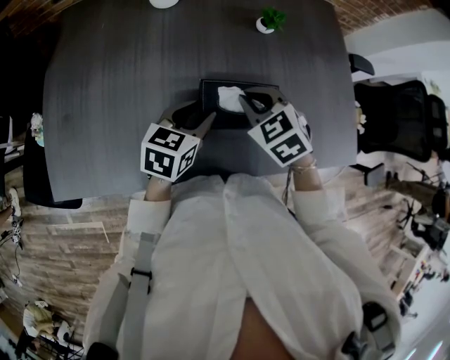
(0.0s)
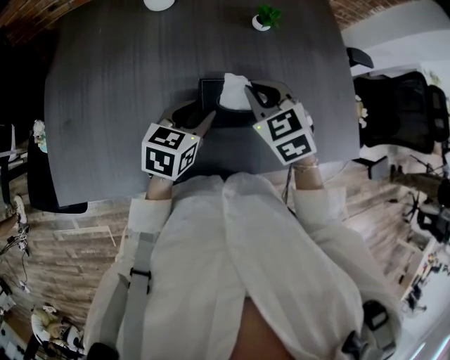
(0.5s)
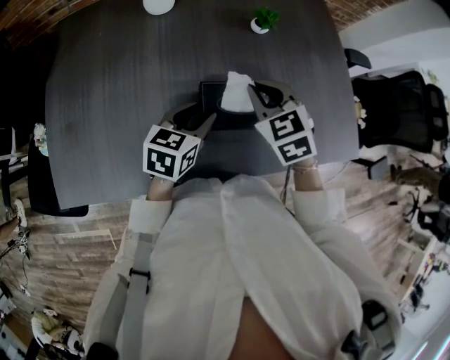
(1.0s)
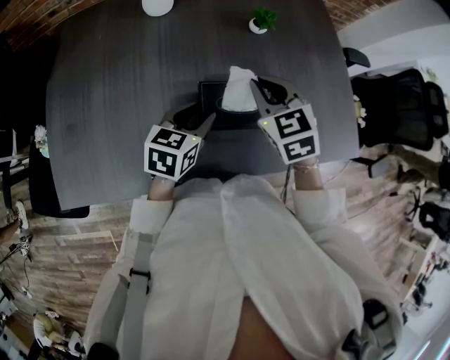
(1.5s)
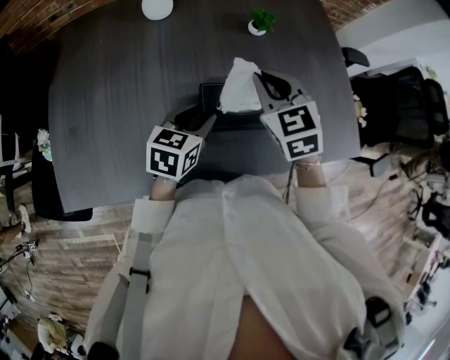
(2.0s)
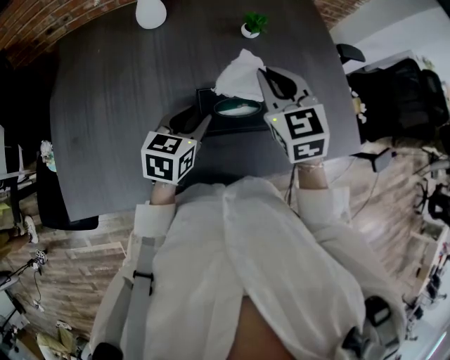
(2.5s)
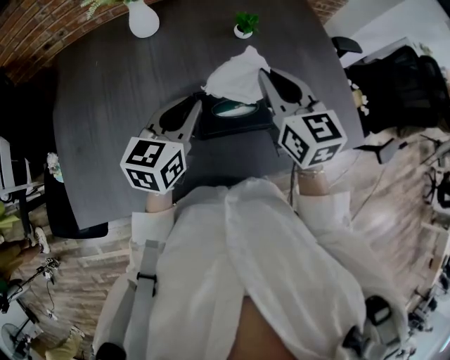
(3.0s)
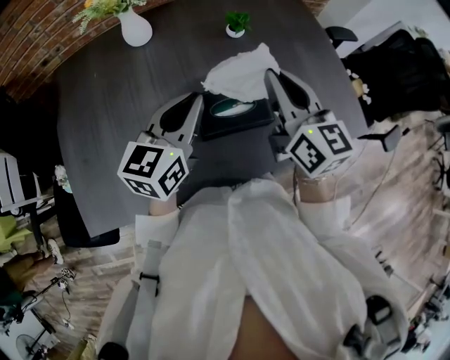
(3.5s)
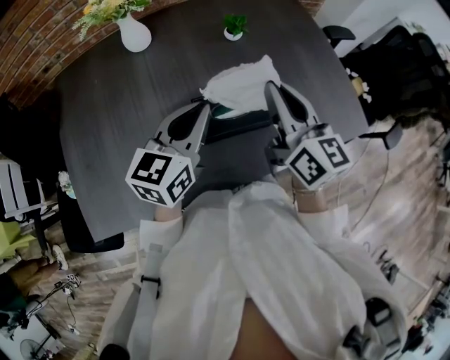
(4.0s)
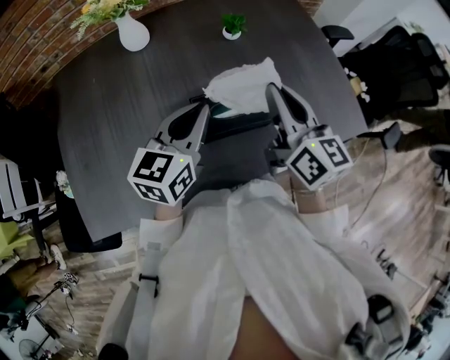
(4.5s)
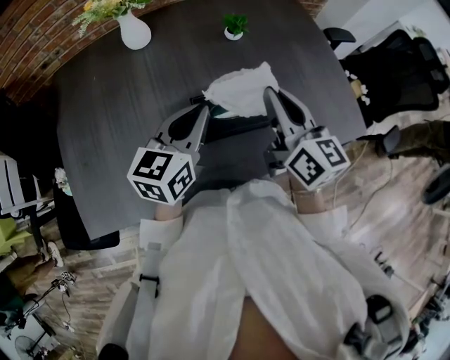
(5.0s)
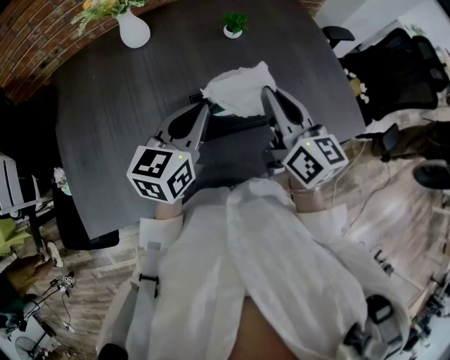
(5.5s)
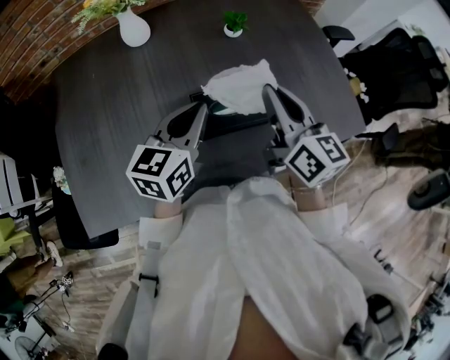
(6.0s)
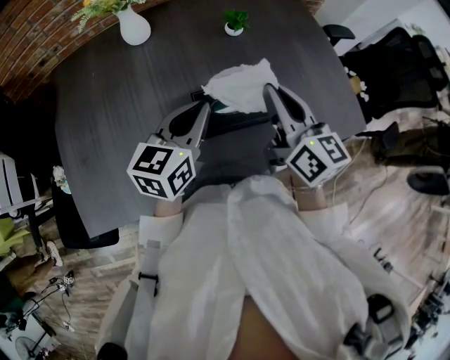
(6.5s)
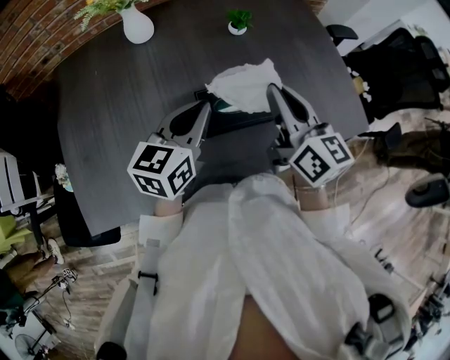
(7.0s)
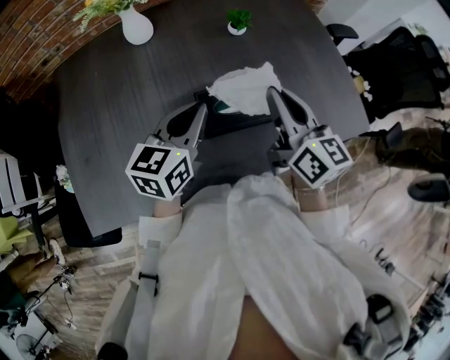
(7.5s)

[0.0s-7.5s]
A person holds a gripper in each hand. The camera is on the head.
0.0s to 2.0s: The right gripper shifts approximately 10 cm upward, and swivels some 20 degrees.
2.0s to 4.0s: The left gripper goes approximately 15 cm upward, swivels roughly 20 degrees, and closes up; the right gripper moves upward, to the right and backward, some 10 cm, and rolls clockwise, seen from behind, by approximately 40 degrees.
4.0s to 5.5s: There are only small adjustments of the grippers.
5.5s to 7.5s: Both grippers stay put.

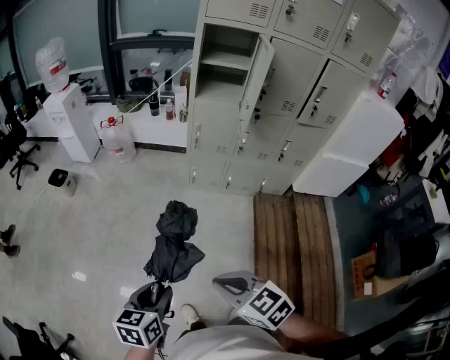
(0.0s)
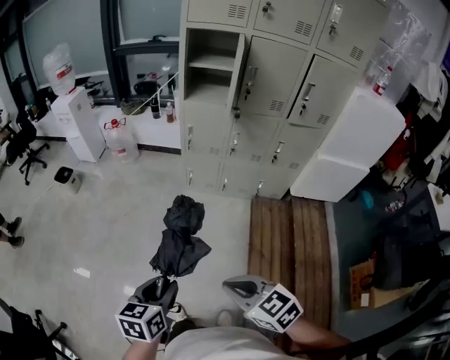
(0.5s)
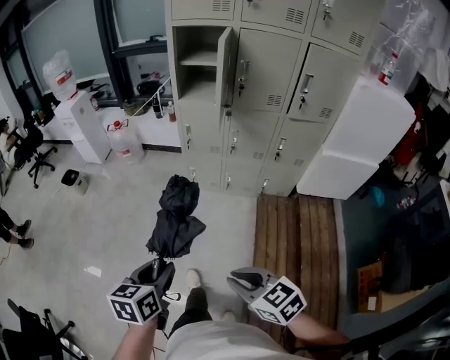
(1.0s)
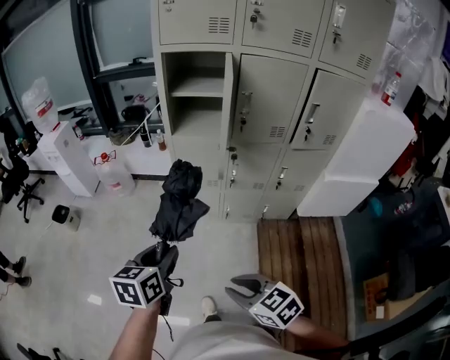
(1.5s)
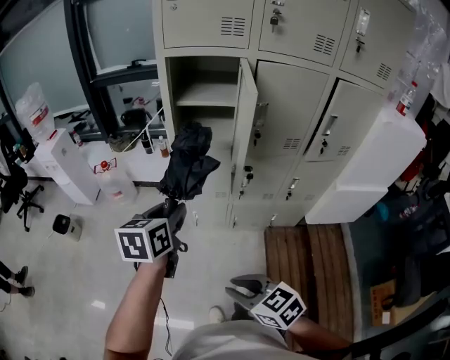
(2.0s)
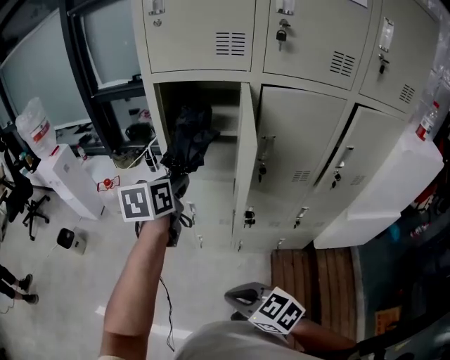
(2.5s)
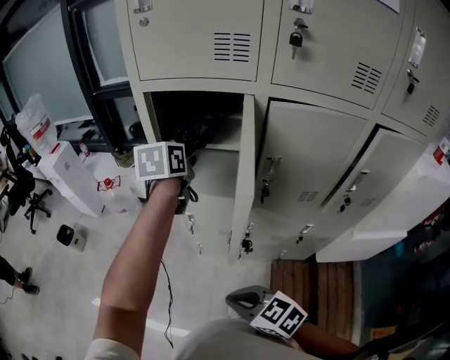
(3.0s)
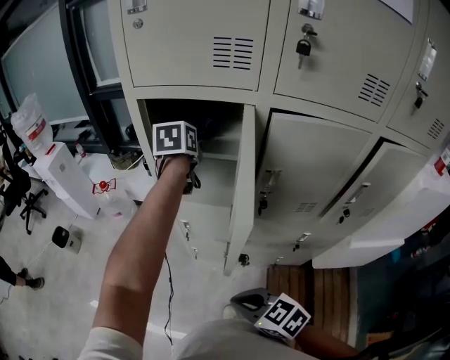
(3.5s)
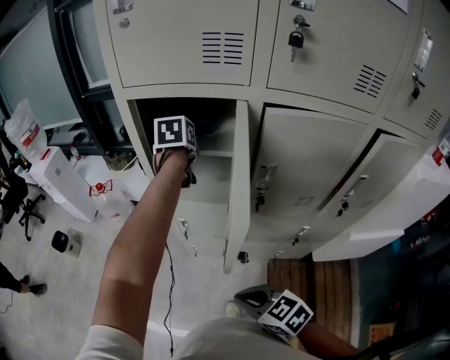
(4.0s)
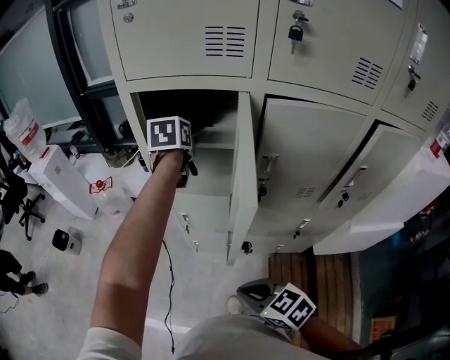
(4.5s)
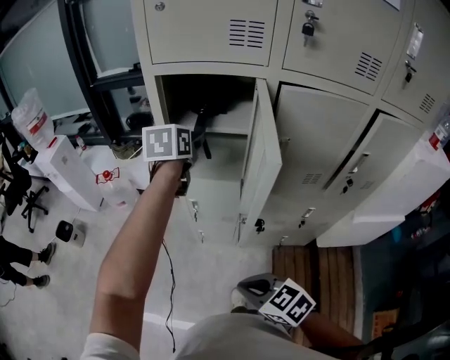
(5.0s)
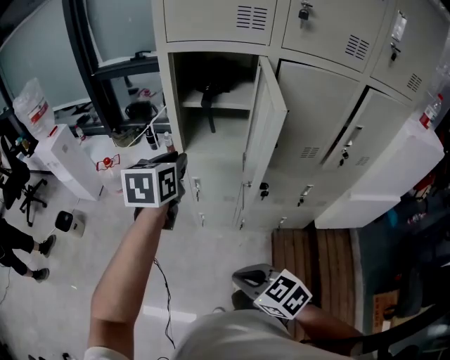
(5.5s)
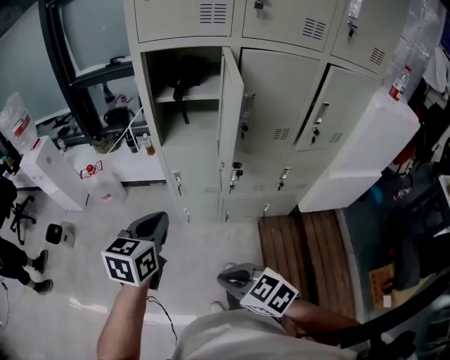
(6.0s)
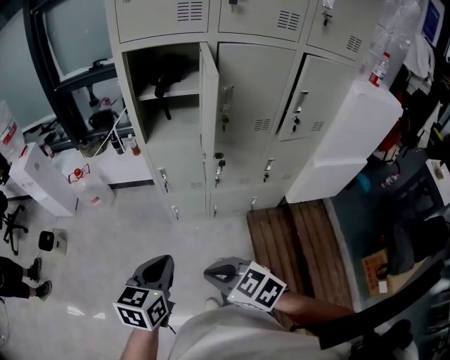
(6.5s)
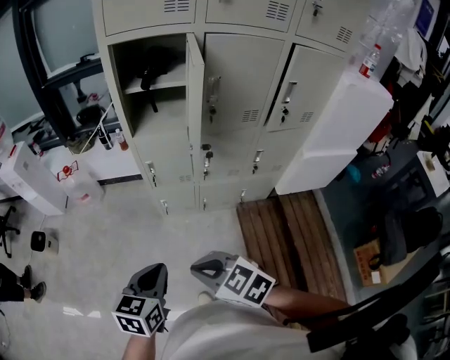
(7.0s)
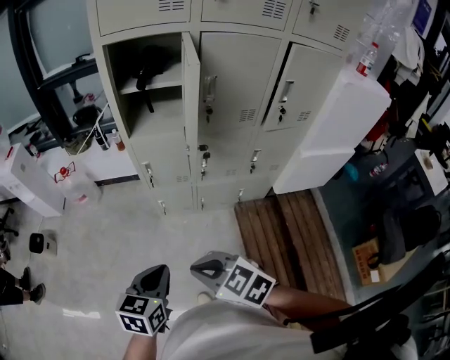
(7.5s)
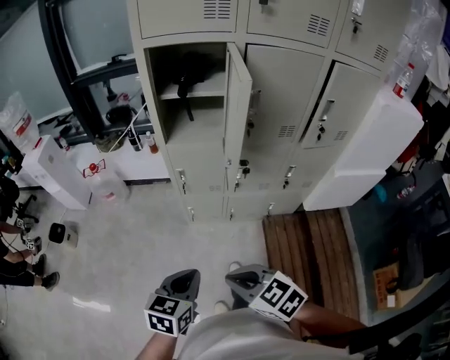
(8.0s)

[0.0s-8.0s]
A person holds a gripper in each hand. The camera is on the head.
0.0s to 2.0s: The left gripper goes about 50 cm forward and to the right; the right gripper travels forward and to the right by about 30 cm.
2.0s to 4.0s: The right gripper is displaced forward and to the right by roughly 25 cm. Meanwhile the left gripper heads forward and to the right, covering about 50 cm.
4.0s to 6.0s: The left gripper shifts about 50 cm backward and to the left, rotates approximately 20 degrees, and closes. Meanwhile the right gripper shifts about 20 cm to the left and backward.
6.0s to 8.0s: The left gripper goes roughly 20 cm backward and downward.

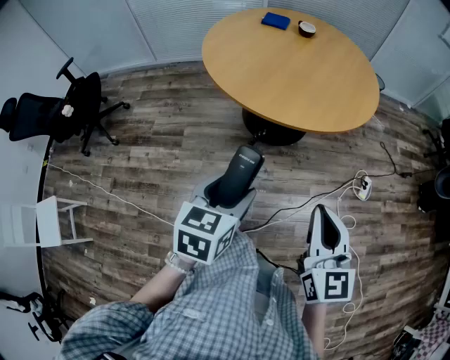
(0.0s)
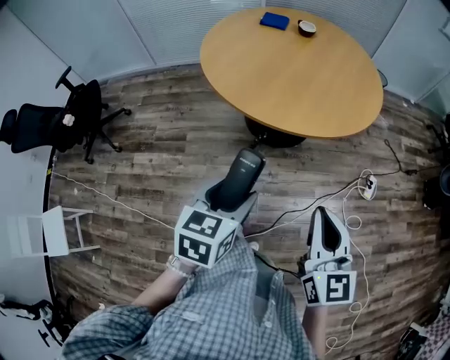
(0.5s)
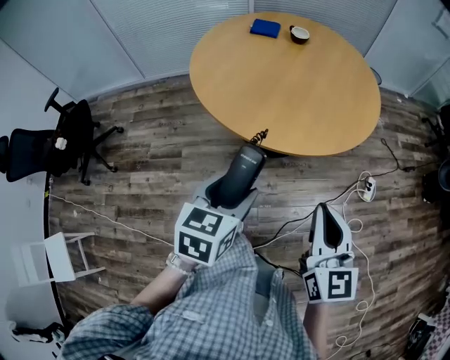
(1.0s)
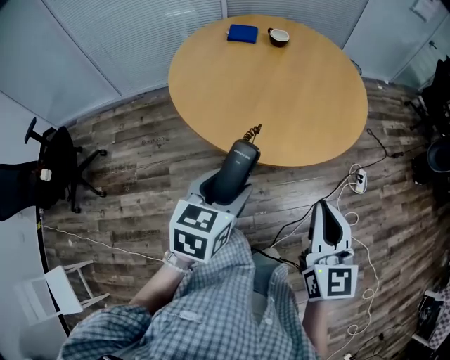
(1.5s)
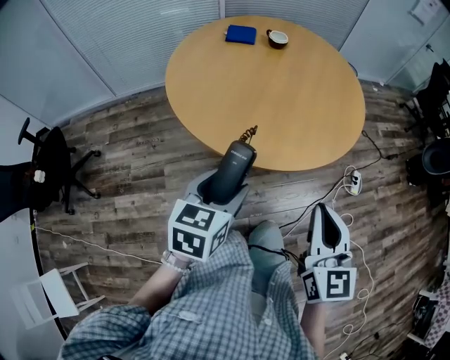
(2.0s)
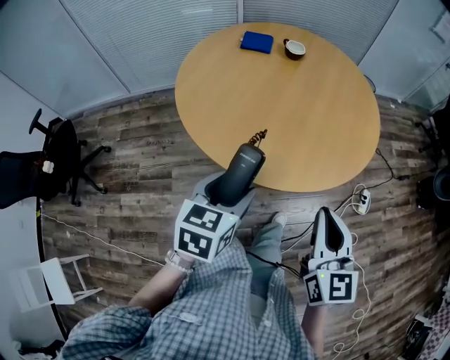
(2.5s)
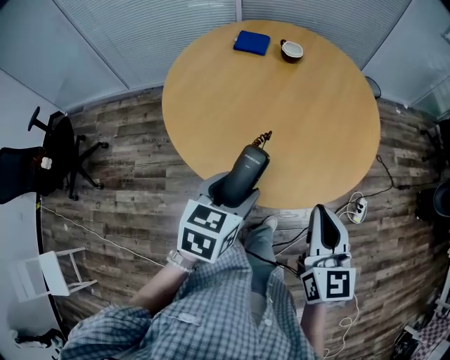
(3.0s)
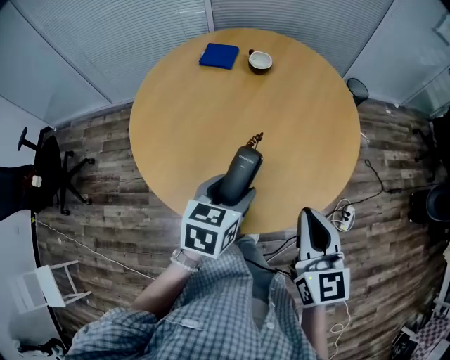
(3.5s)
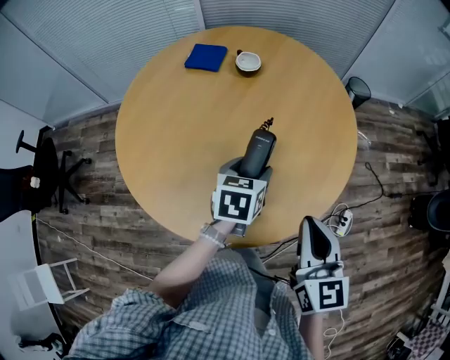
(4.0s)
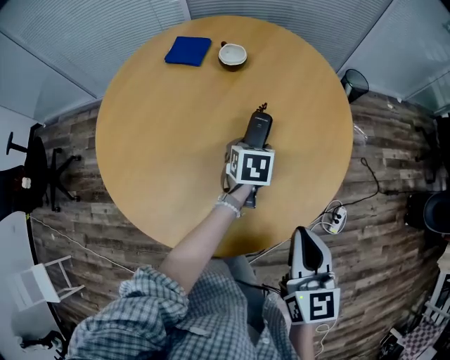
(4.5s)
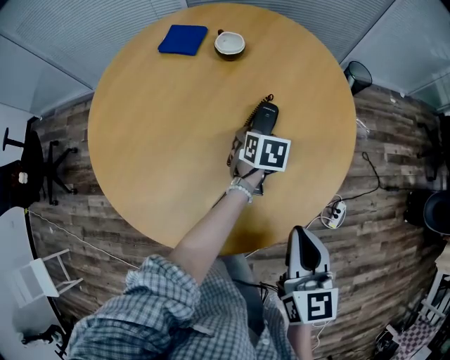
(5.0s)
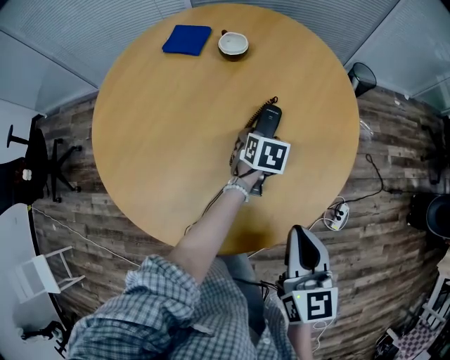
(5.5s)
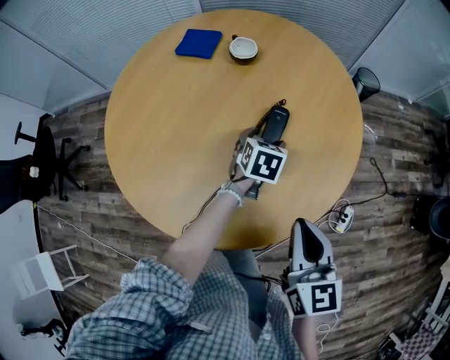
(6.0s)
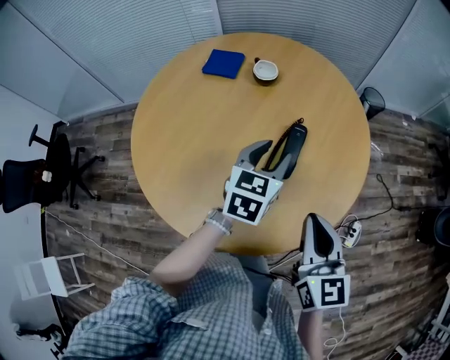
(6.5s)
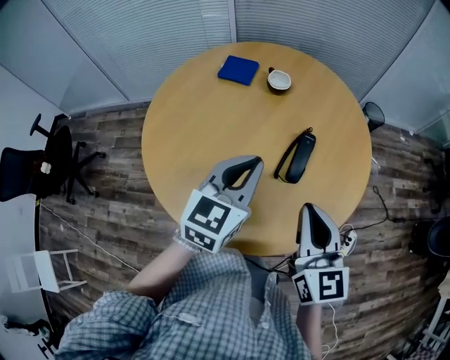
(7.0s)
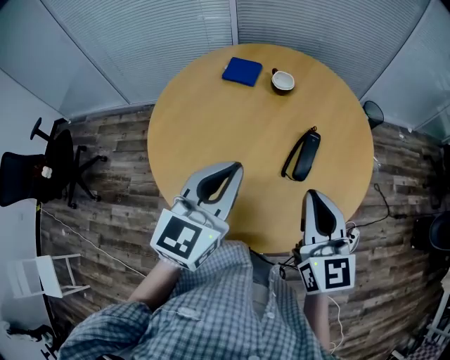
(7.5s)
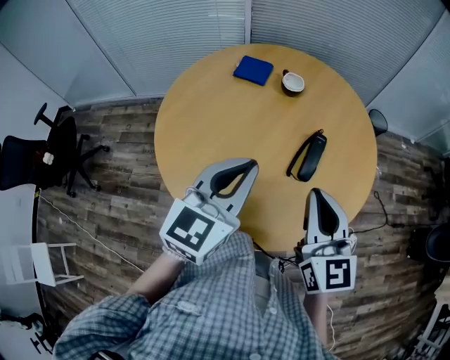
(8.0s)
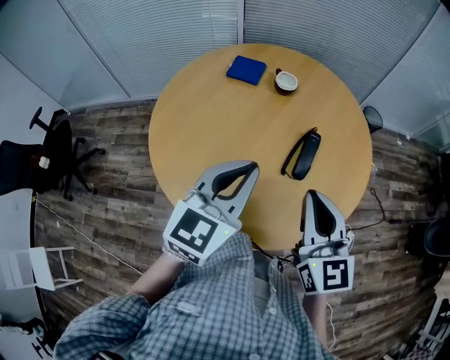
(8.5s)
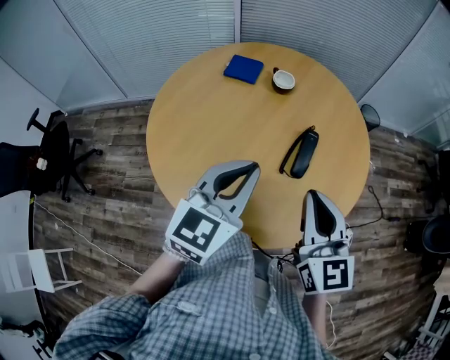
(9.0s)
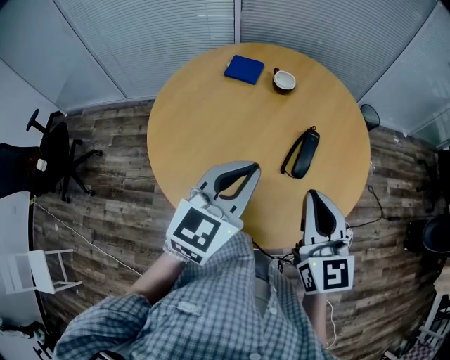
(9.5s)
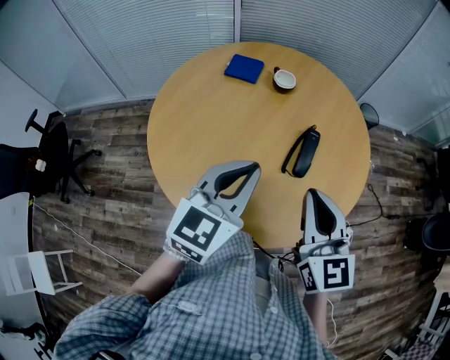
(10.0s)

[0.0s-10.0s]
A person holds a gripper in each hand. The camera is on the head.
0.0s to 2.0s: The grippers both shift forward and to the left by approximately 20 cm.
2.0s to 4.0s: The two grippers go roughly 40 cm forward and to the right.
4.0s to 6.0s: The left gripper heads forward, downward and to the right, covering about 15 cm.
6.0s to 8.0s: The left gripper heads upward, to the left and backward, covering approximately 40 cm, angles its fingers upward, by some 40 degrees, and closes its fingers. The right gripper is displaced to the left and upward by roughly 15 cm, and changes its angle by about 20 degrees.
8.0s to 10.0s: The grippers move only a little.

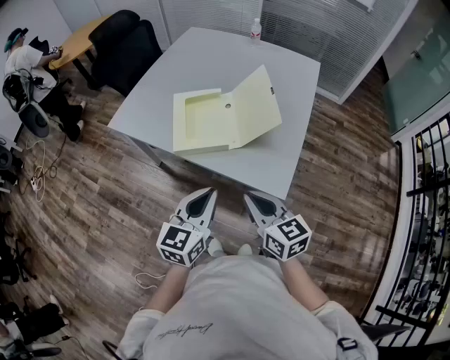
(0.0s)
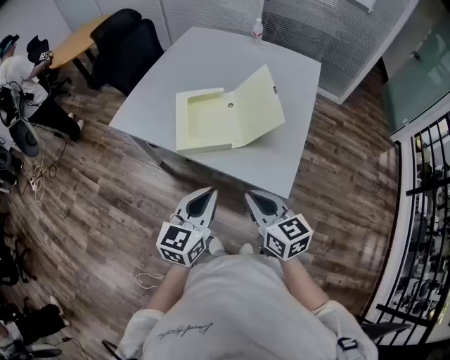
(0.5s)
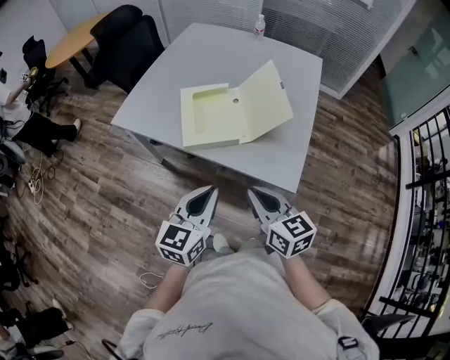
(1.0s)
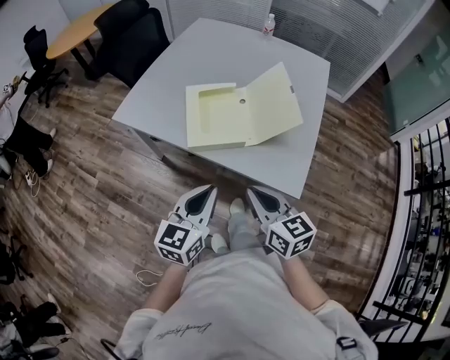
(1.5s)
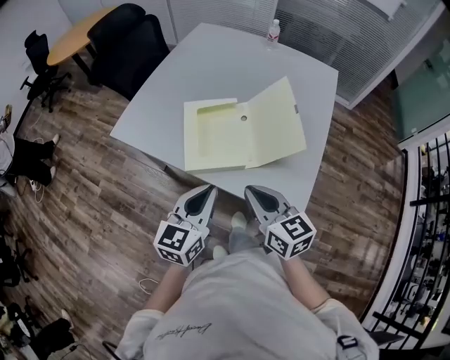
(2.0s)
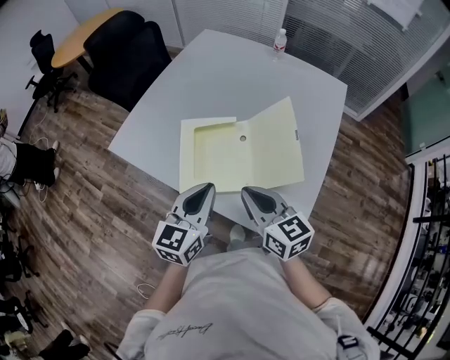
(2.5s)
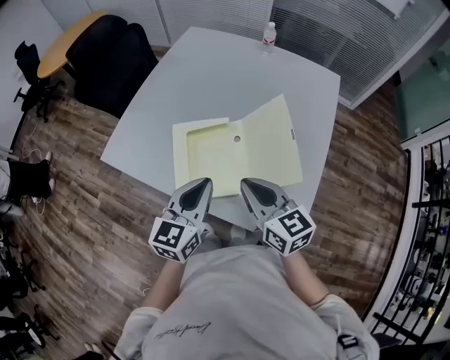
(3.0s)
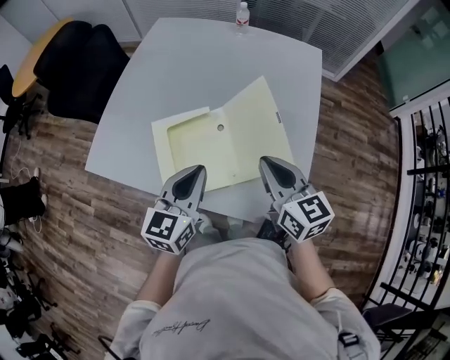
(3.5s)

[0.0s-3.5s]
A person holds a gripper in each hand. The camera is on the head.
0.0s to 2.0s: The right gripper shifts approximately 10 cm forward; the left gripper heads forward and to the left, covering approximately 10 cm.
2.0s to 3.5s: The right gripper travels forward and to the right by approximately 15 cm; the left gripper moves forward, about 15 cm.
